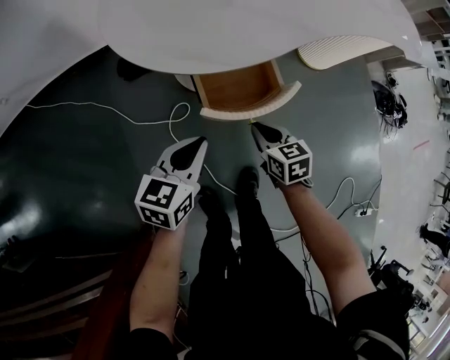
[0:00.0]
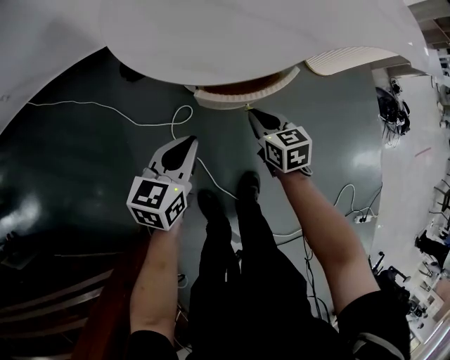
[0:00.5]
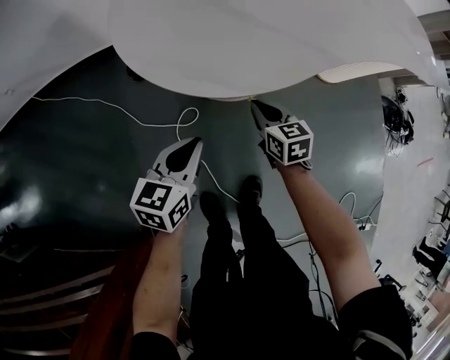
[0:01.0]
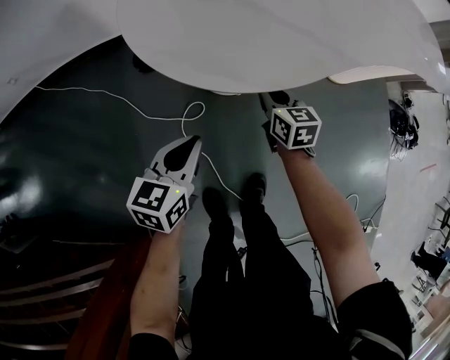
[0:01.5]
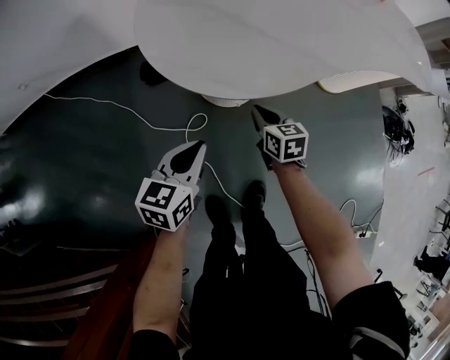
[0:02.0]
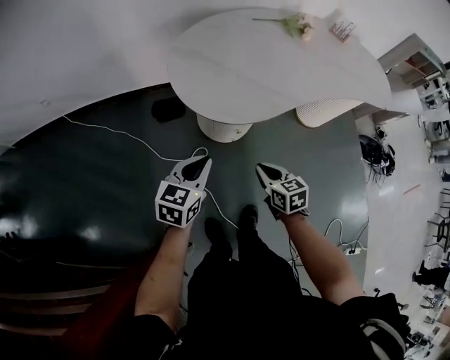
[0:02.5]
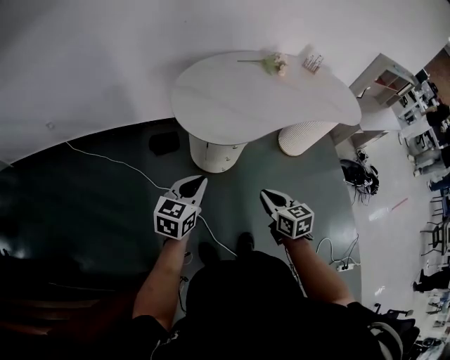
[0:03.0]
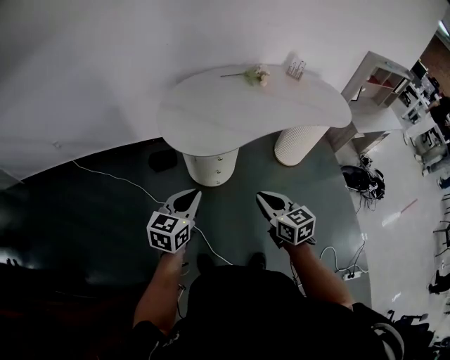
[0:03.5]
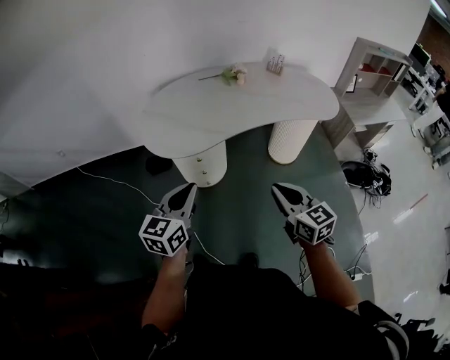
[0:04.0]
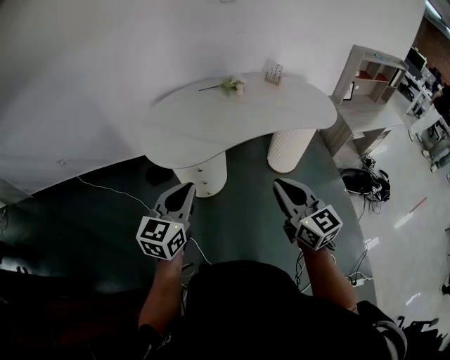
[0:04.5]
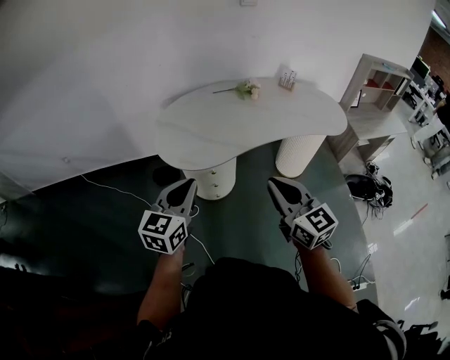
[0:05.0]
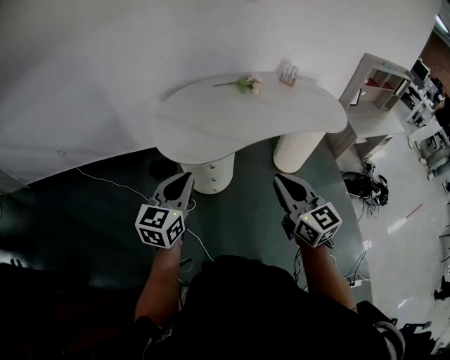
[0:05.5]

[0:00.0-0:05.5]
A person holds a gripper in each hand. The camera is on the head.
0:00.0 to 0:02.0: The left gripper heads to the left, covering about 5 cm. Meanwhile the right gripper is displaced forward and to the left by some 10 cm.
0:02.0 to 0:03.5: Both grippers travel together upward and backward, approximately 35 cm.
0:03.5 to 0:05.5: The right gripper travels upward and to the right by roughly 20 cm, and changes its angle by roughly 20 degrees. Meanwhile the left gripper heads upward, covering about 10 cm, and moves about 15 cm to the right and comes back.

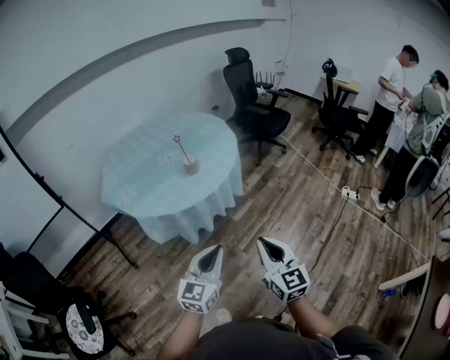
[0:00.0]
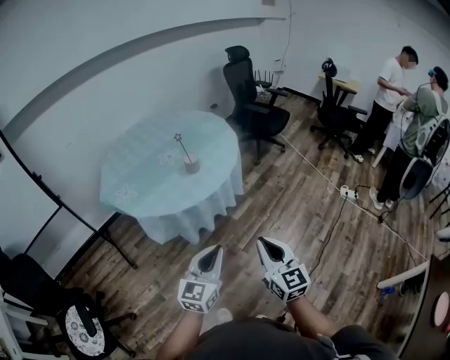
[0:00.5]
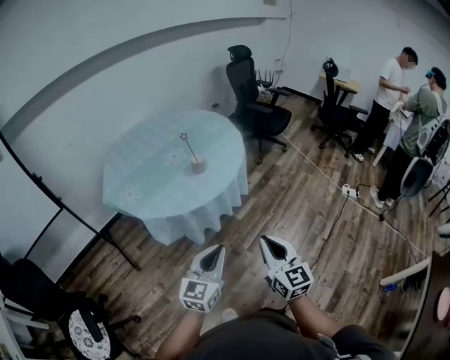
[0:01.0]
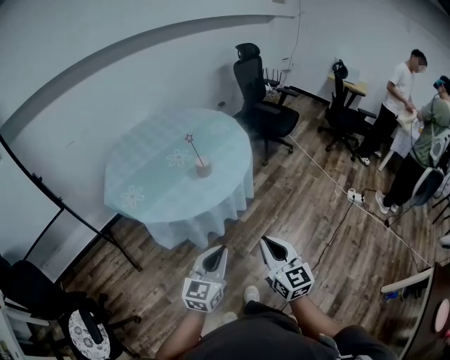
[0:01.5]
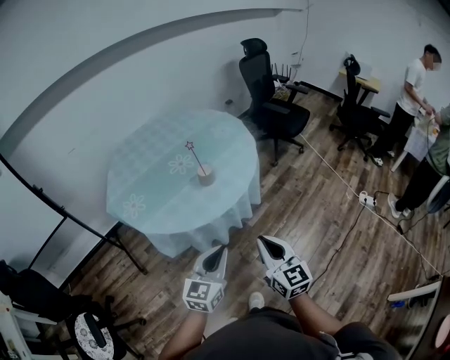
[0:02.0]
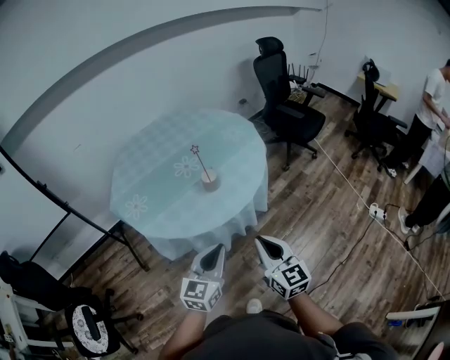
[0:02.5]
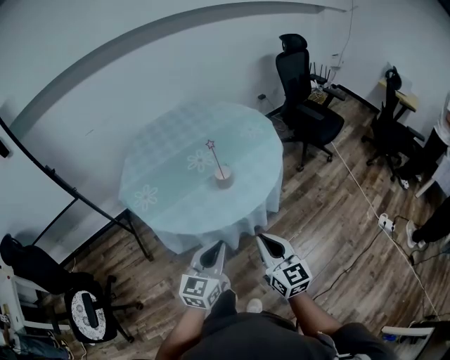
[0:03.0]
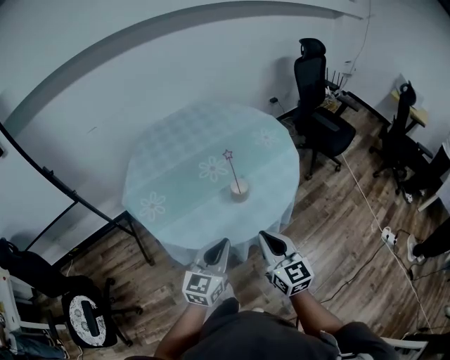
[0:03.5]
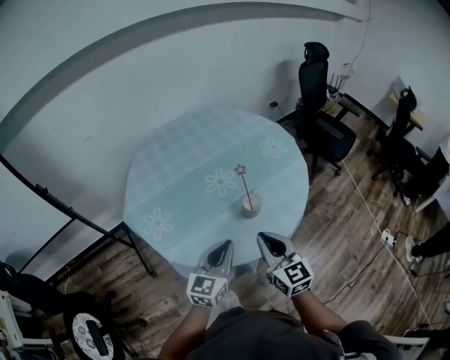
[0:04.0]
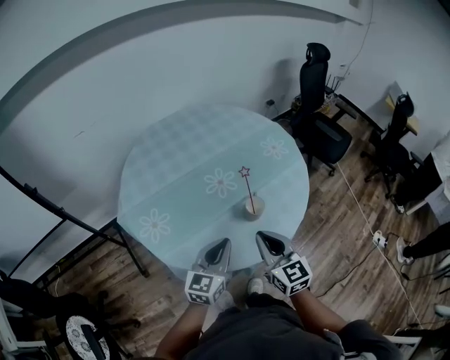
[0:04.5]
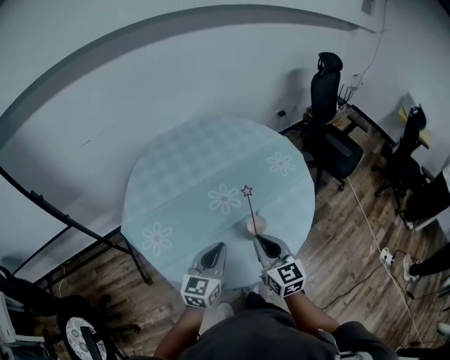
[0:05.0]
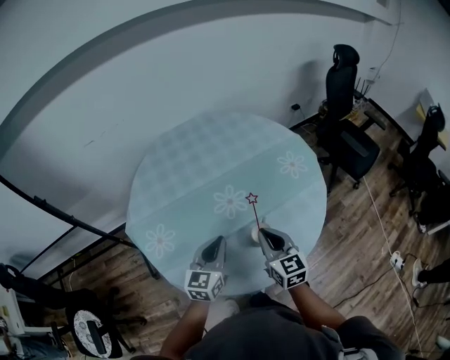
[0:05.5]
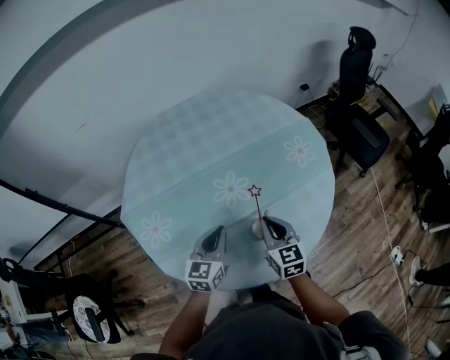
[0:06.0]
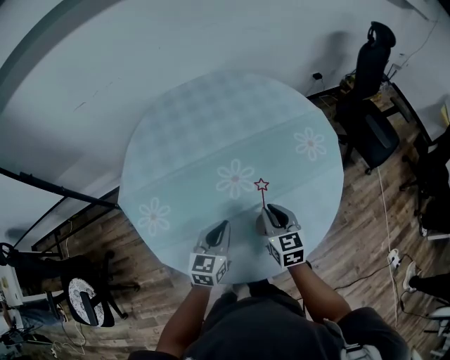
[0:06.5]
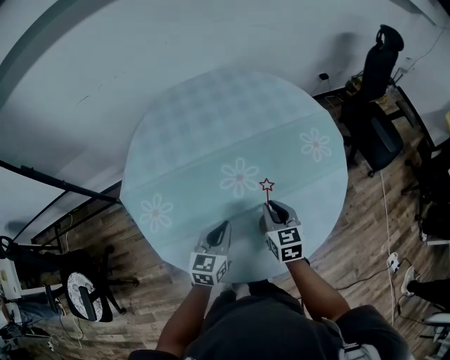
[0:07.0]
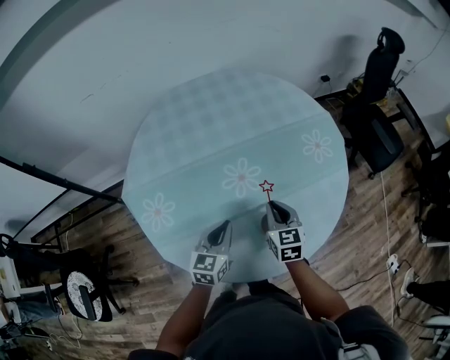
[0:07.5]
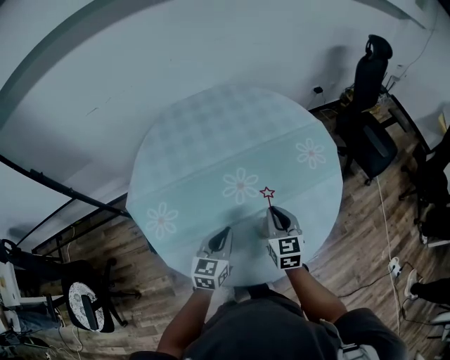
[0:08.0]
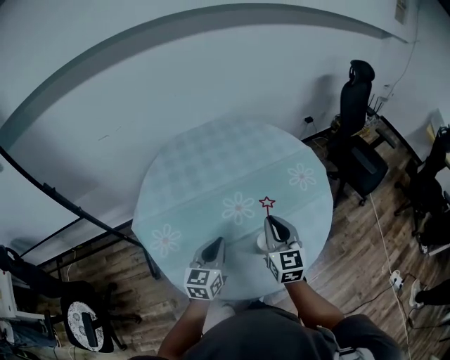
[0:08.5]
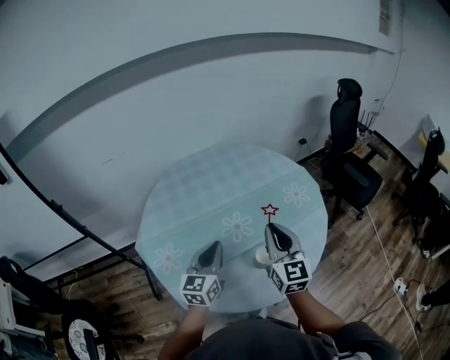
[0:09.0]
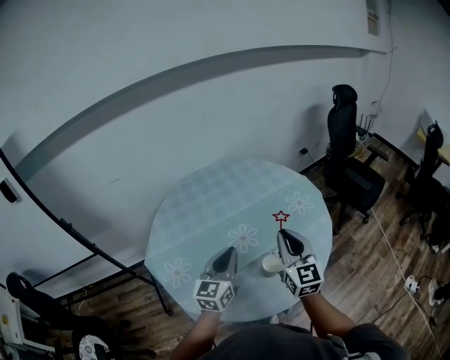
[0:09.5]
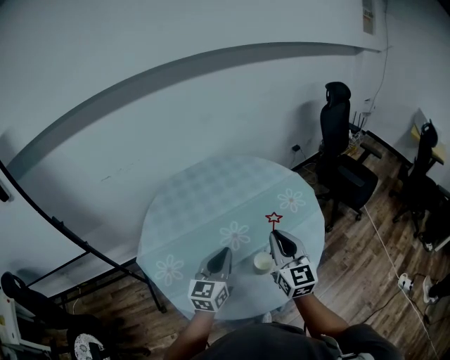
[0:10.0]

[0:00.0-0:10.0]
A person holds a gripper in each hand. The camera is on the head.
0:00.0 to 0:02.0: The right gripper goes about 20 cm forward and to the left. Meanwhile the left gripper travels forward by approximately 15 cm.
0:02.0 to 0:04.0: Both grippers move forward and to the left, about 30 cm.
0:04.0 to 0:06.0: The two grippers go some 20 cm forward and downward.
0:08.0 to 0:10.0: The two grippers go roughly 20 cm upward. The right gripper rotates some 30 degrees.

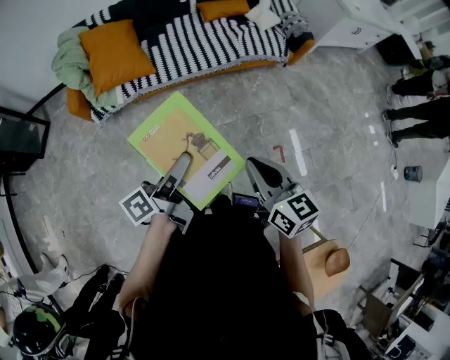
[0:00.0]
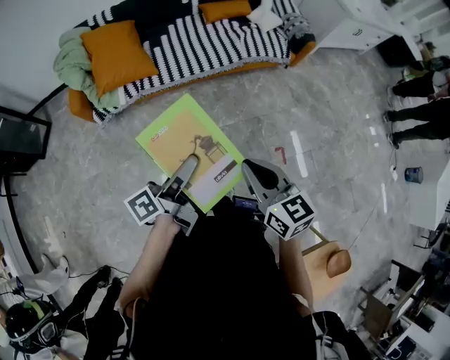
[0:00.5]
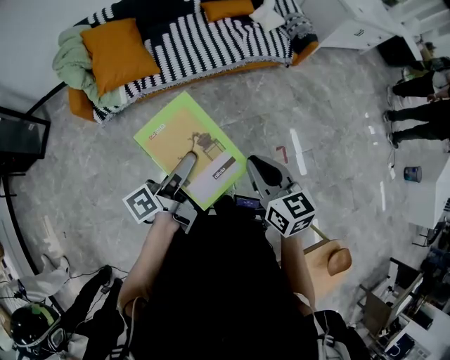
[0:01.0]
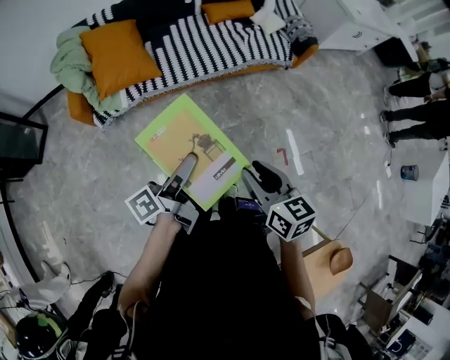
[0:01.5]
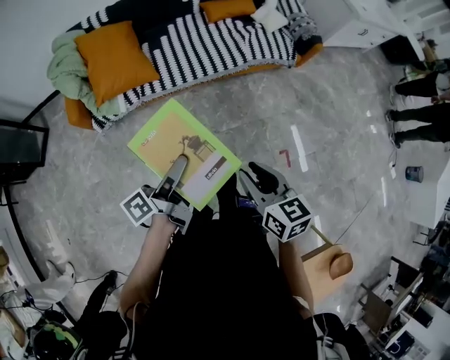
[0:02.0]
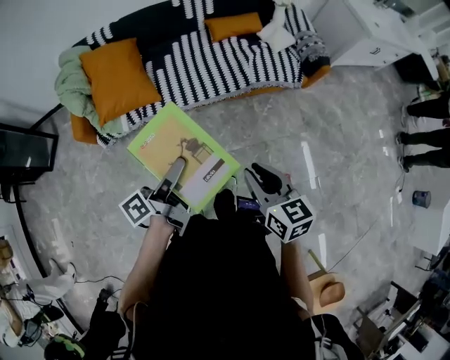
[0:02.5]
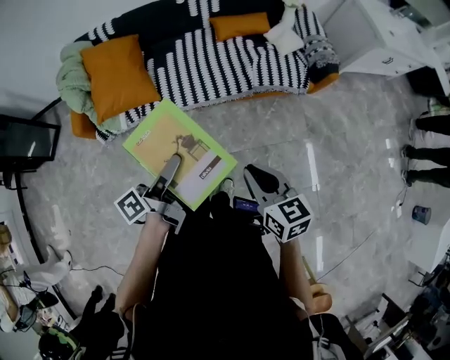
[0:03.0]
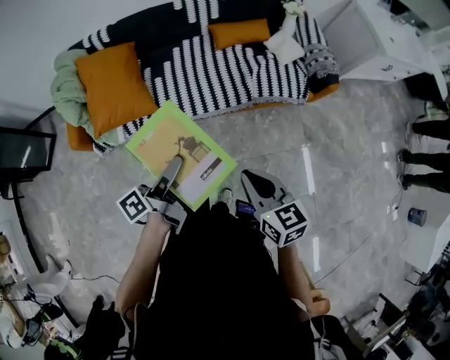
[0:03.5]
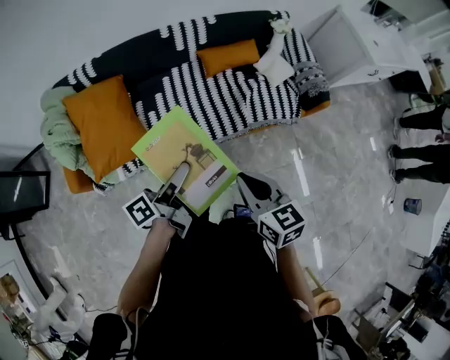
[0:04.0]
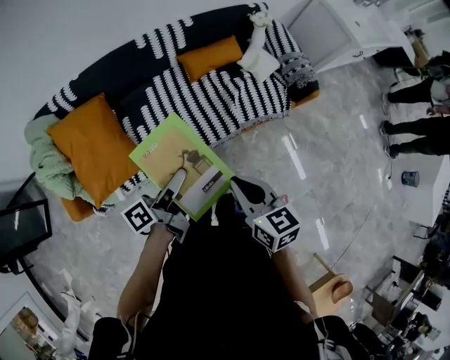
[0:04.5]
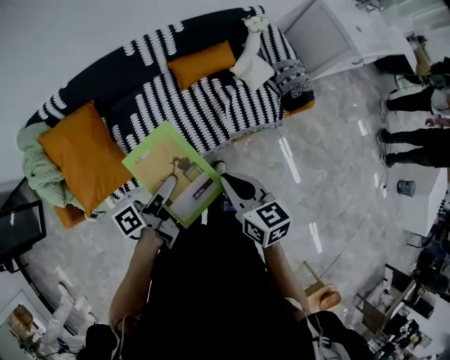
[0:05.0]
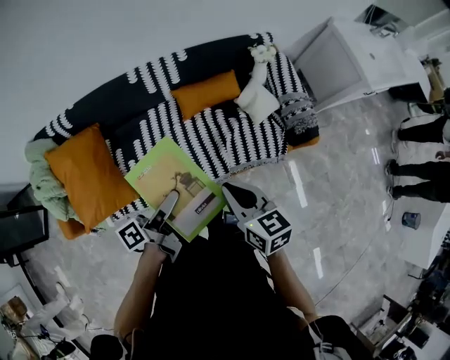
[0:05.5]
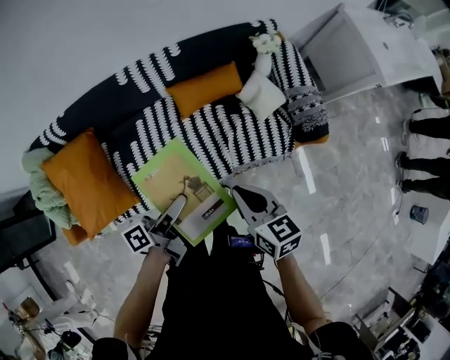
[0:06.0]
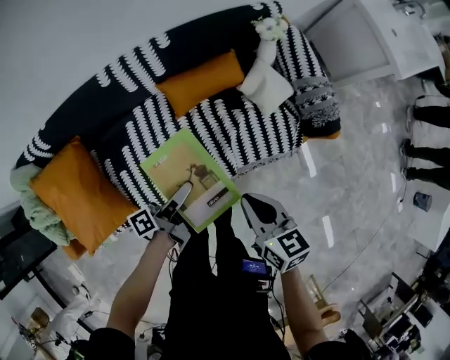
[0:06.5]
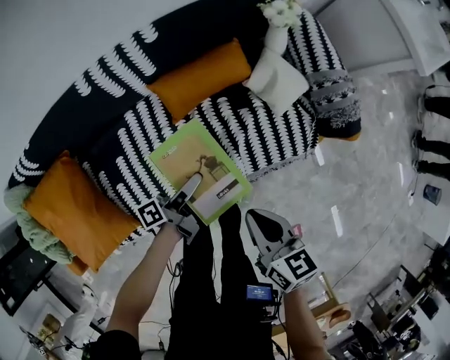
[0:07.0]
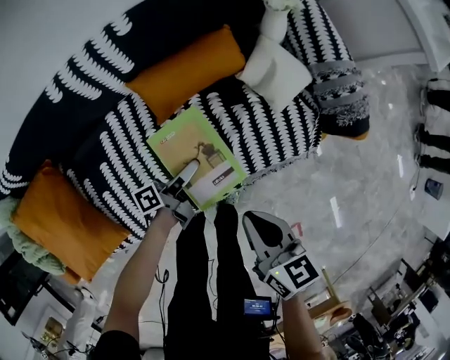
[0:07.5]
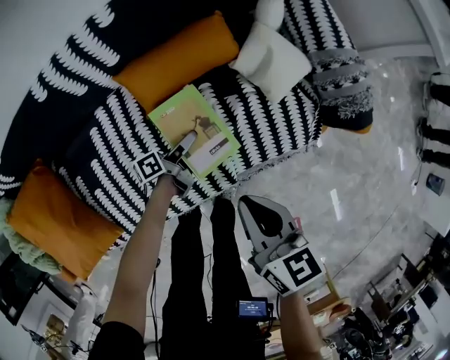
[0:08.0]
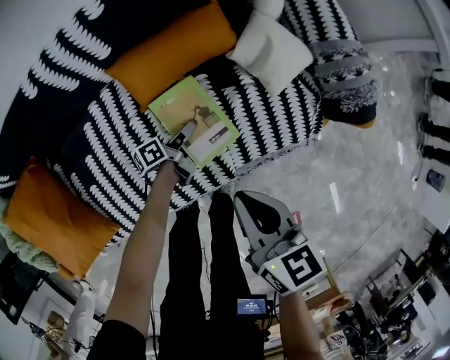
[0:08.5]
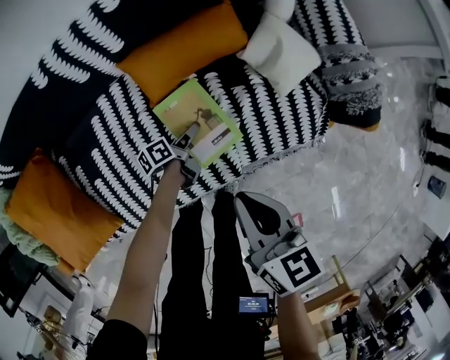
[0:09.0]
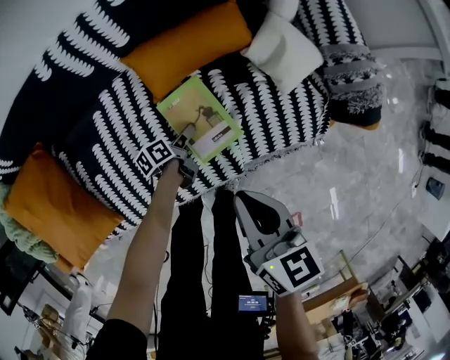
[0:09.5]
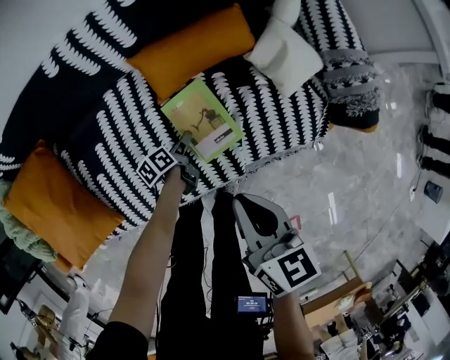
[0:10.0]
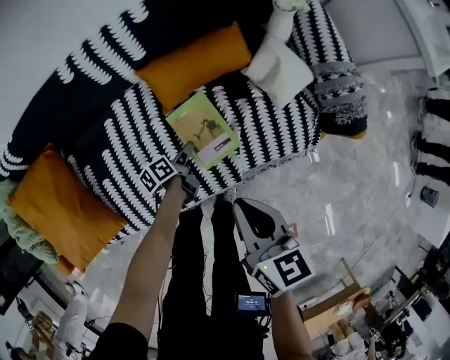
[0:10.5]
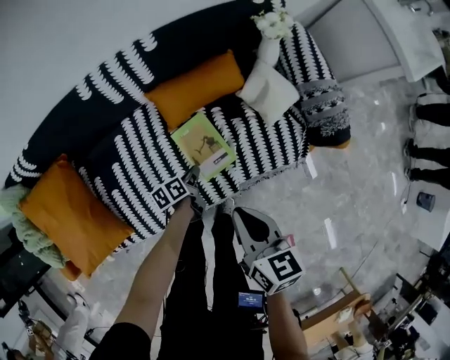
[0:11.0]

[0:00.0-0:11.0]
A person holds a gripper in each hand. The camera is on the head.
0:00.0 to 0:02.0: The right gripper shifts by roughly 10 cm, and opens its fingers.
0:02.0 to 0:03.5: The right gripper ends up some 25 cm from where it was, and closes up.
0:03.5 to 0:05.5: The right gripper ends up some 35 cm from where it was.
0:05.5 to 0:07.5: The right gripper shifts roughly 25 cm downward.
0:09.0 to 0:11.0: The right gripper shifts about 5 cm upward.
